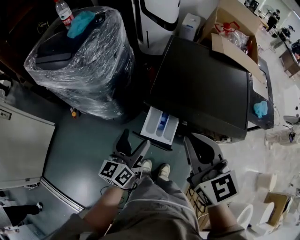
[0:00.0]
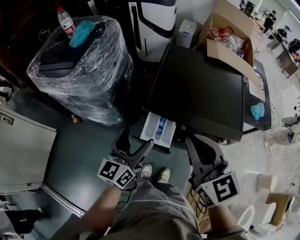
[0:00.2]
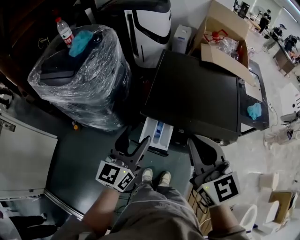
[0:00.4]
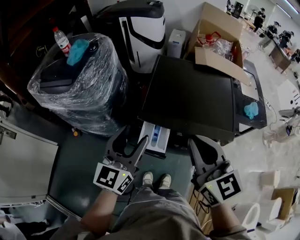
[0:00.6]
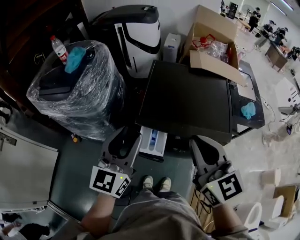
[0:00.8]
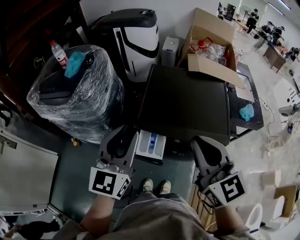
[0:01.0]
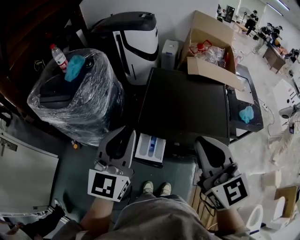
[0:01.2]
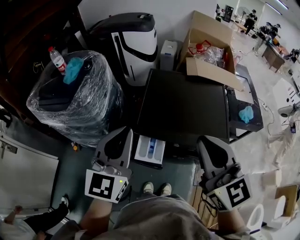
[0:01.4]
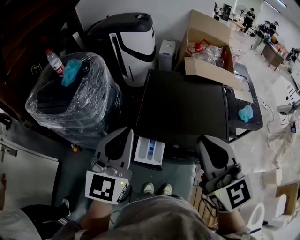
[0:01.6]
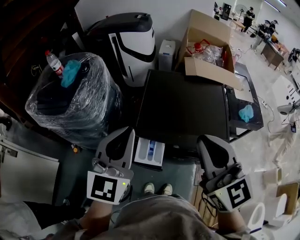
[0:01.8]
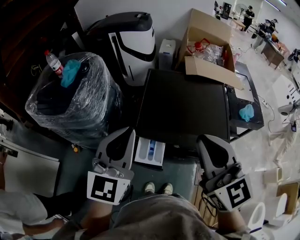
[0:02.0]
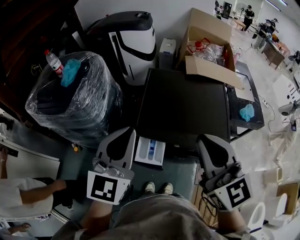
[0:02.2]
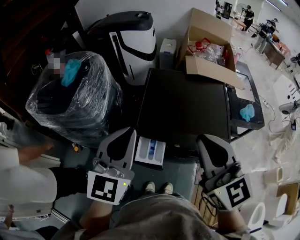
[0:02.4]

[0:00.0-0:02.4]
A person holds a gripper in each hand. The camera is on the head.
0:00.0 to 0:01.2: The right gripper shifts about 15 cm upward and to the right. Meanwhile the left gripper heads upward, covering approximately 25 cm, rotates approximately 40 degrees, and closes up.
0:01.2 to 0:02.4: The grippers stay close to where they were, moving slightly.

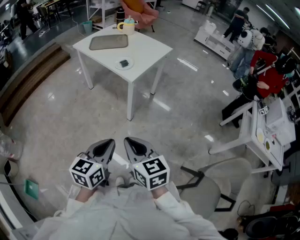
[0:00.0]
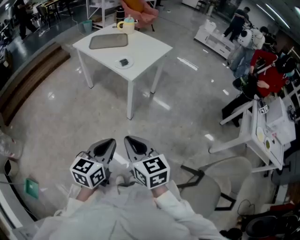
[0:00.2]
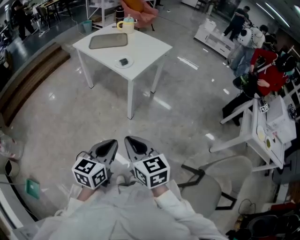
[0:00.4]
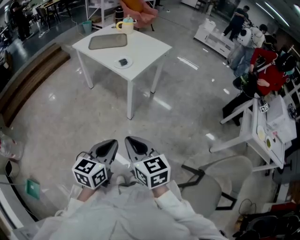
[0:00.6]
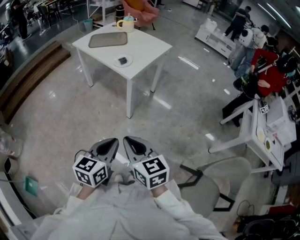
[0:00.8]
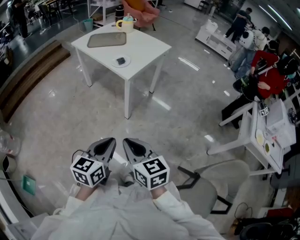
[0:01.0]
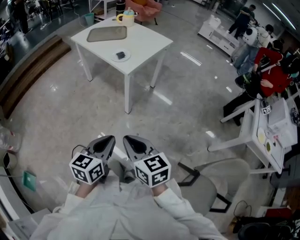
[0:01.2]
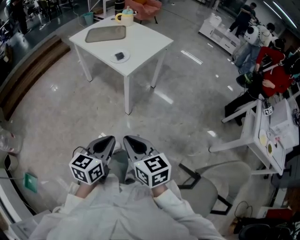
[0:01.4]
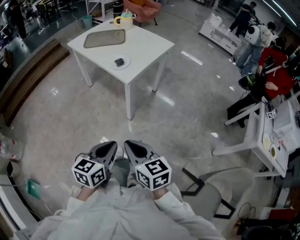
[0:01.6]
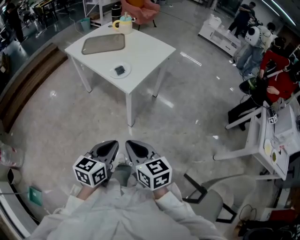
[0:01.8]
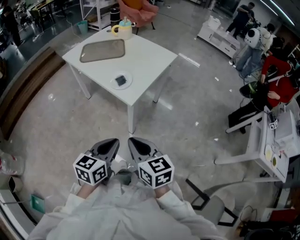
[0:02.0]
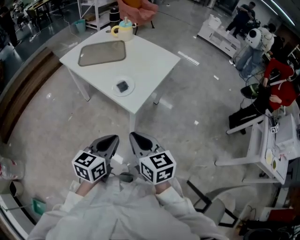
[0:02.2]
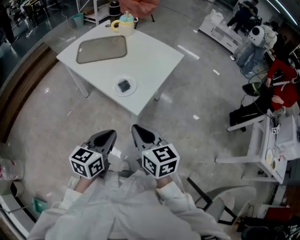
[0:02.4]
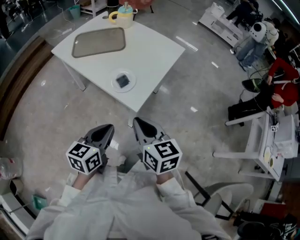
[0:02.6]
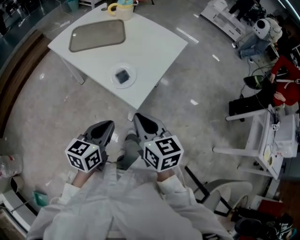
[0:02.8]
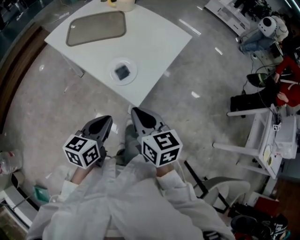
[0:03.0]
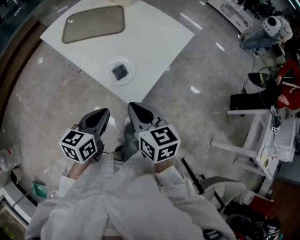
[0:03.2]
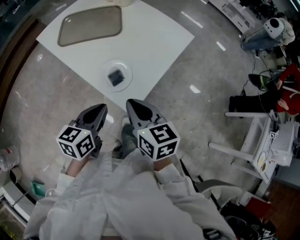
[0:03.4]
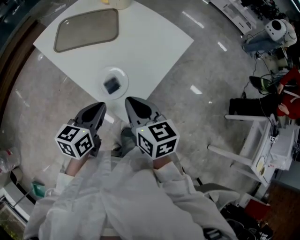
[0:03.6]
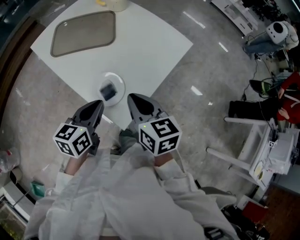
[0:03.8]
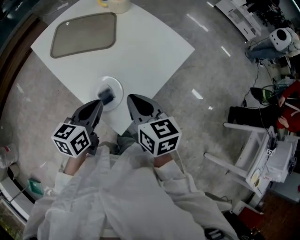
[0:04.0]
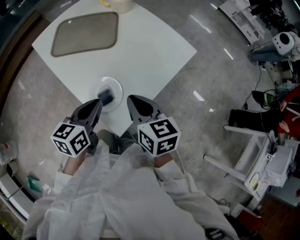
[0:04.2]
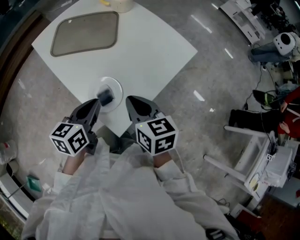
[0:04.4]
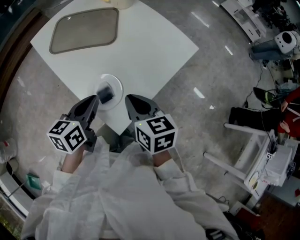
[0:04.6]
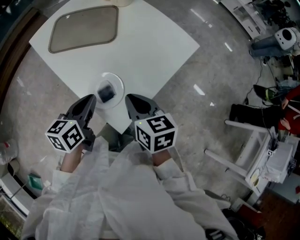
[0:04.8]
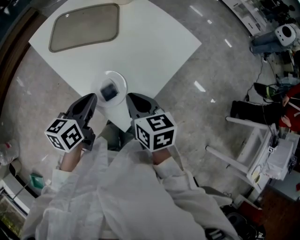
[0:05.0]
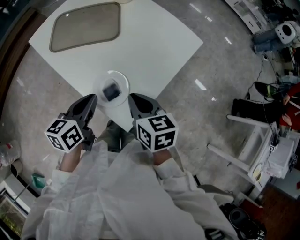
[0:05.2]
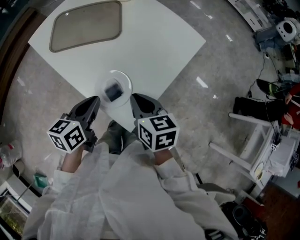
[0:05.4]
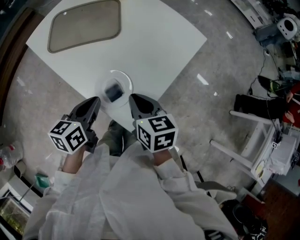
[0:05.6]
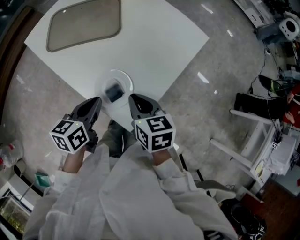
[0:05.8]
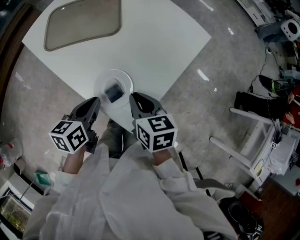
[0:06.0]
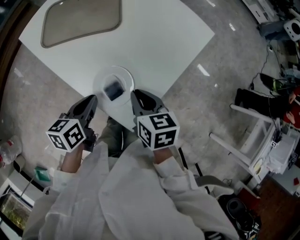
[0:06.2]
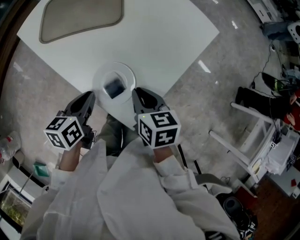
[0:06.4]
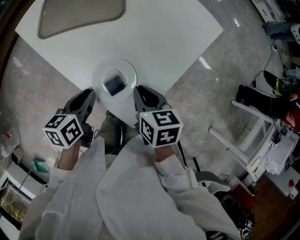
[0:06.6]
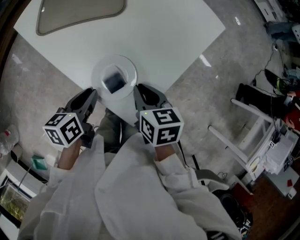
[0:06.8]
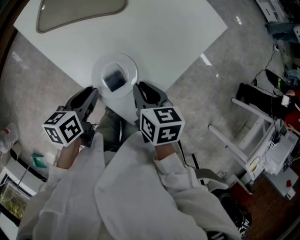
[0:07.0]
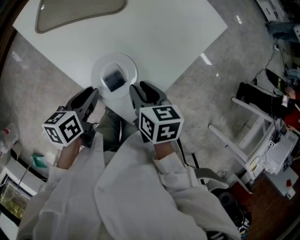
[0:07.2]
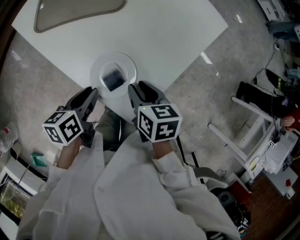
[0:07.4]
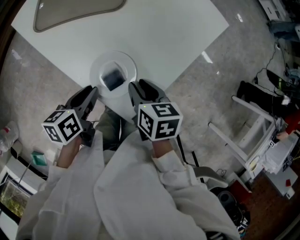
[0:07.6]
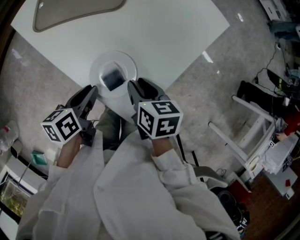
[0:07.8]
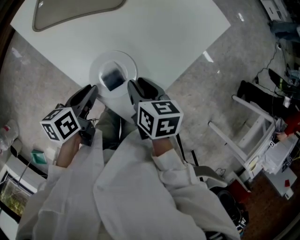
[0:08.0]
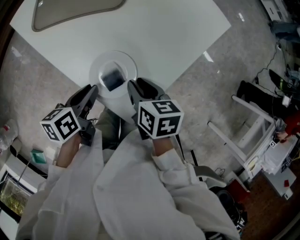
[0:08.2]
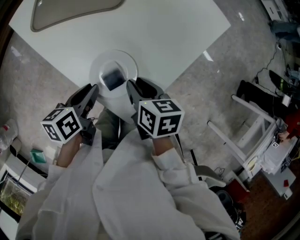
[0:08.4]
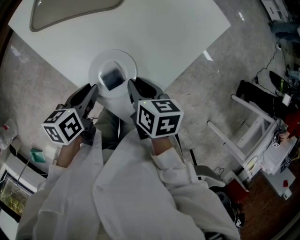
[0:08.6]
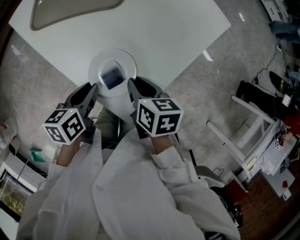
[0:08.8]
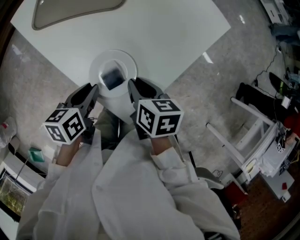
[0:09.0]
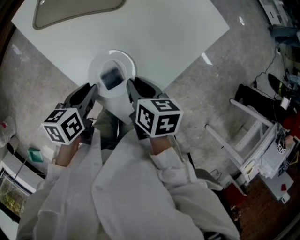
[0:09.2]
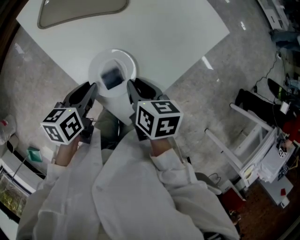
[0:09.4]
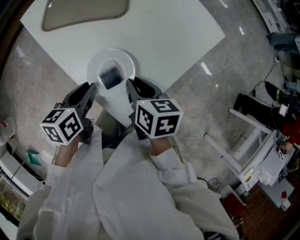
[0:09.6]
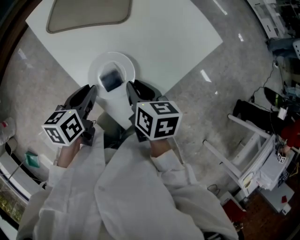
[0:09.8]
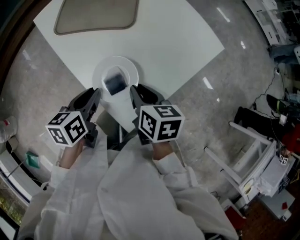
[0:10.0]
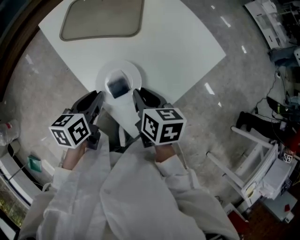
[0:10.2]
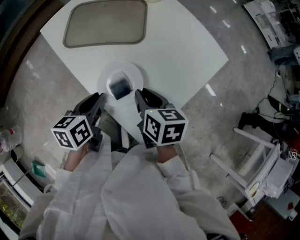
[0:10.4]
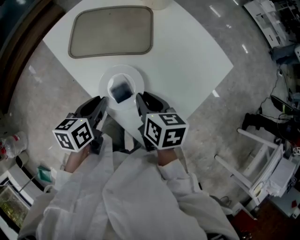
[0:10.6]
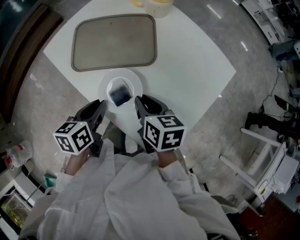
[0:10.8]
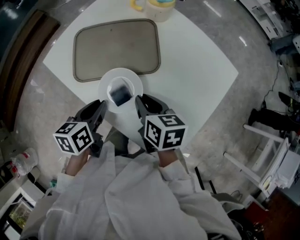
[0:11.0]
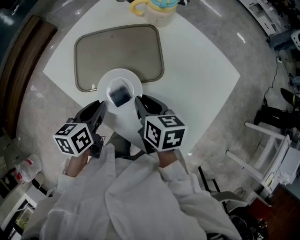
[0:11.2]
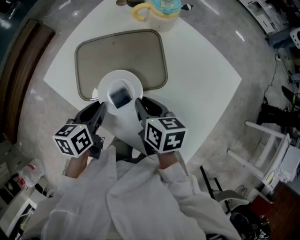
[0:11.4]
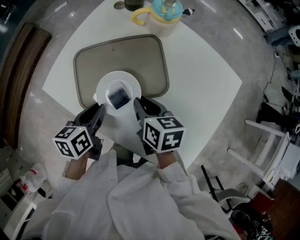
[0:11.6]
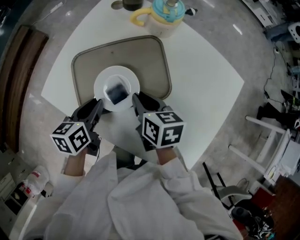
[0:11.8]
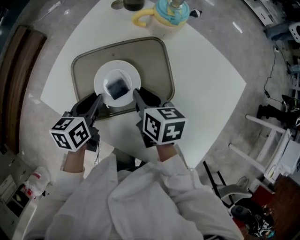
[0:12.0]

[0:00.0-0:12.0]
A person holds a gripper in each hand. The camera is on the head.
0:00.0 to 0:01.6: Both grippers move forward, approximately 5 cm.
0:01.6 to 0:03.0: Both grippers move forward, about 35 cm.
0:03.0 to 0:04.4: Both grippers travel together forward, about 20 cm.
0:04.4 to 0:06.0: The two grippers go some 5 cm downward.
0:06.0 to 0:07.6: The left gripper ends up some 5 cm from where it was, while the right gripper shifts approximately 5 cm downward, and opens.
0:07.6 to 0:09.0: The grippers stay close to where they were, moving slightly.
0:09.0 to 0:10.4: The right gripper goes some 10 cm upward and forward, while the left gripper shifts about 5 cm upward.
0:10.4 to 0:12.0: Both grippers travel together forward and to the left, roughly 30 cm.

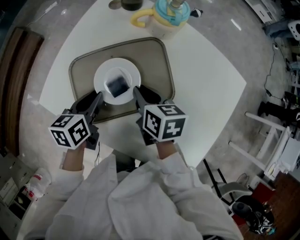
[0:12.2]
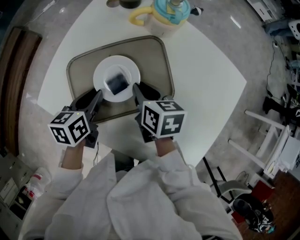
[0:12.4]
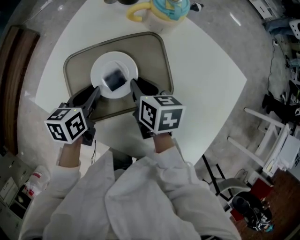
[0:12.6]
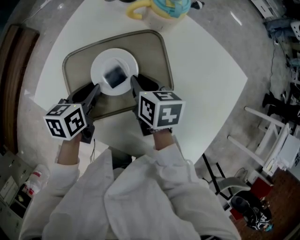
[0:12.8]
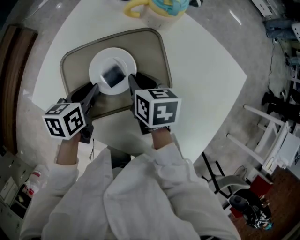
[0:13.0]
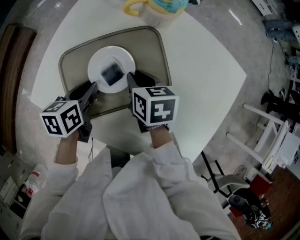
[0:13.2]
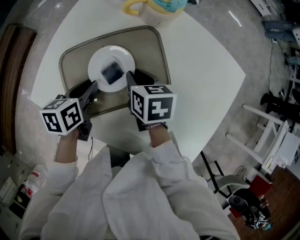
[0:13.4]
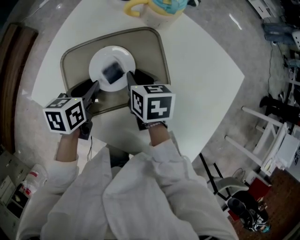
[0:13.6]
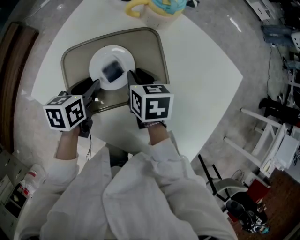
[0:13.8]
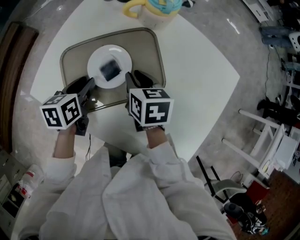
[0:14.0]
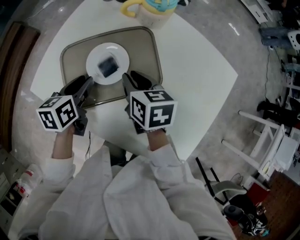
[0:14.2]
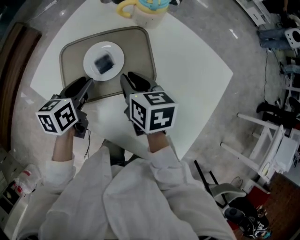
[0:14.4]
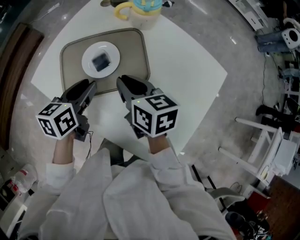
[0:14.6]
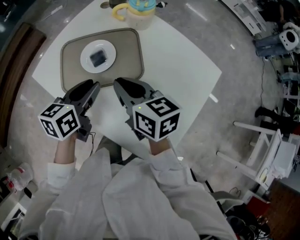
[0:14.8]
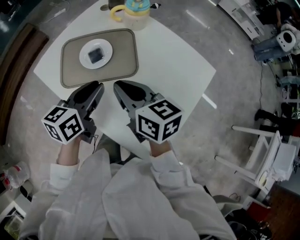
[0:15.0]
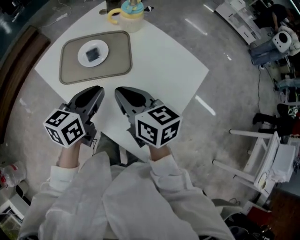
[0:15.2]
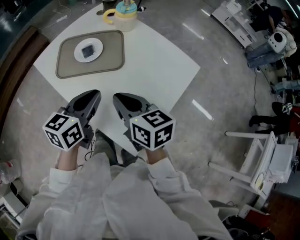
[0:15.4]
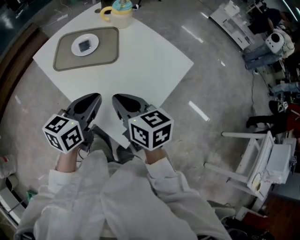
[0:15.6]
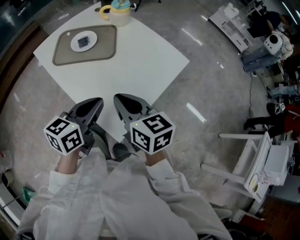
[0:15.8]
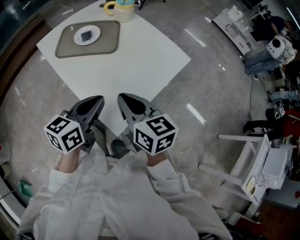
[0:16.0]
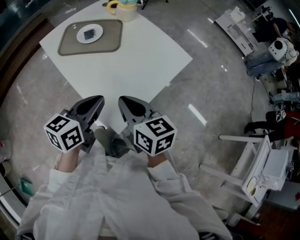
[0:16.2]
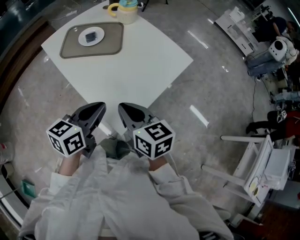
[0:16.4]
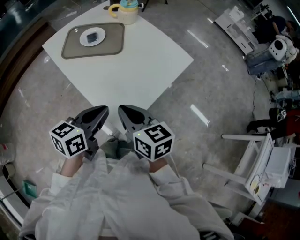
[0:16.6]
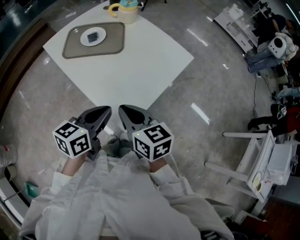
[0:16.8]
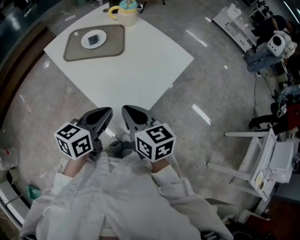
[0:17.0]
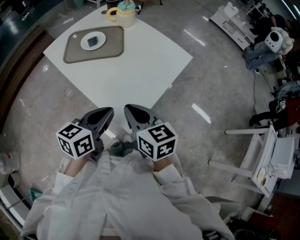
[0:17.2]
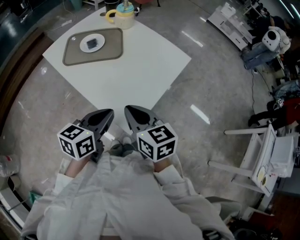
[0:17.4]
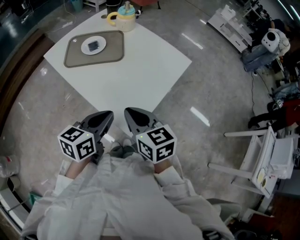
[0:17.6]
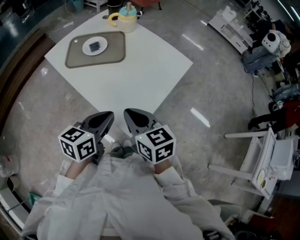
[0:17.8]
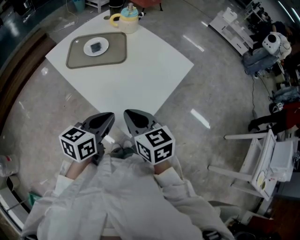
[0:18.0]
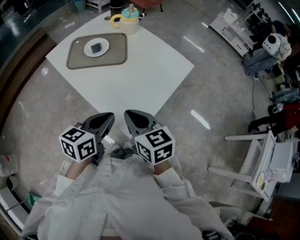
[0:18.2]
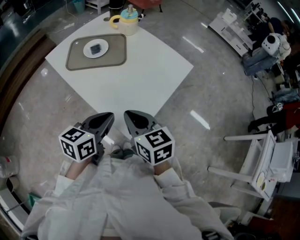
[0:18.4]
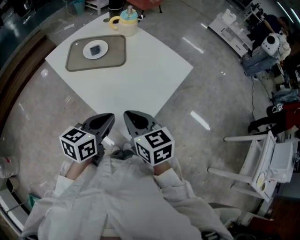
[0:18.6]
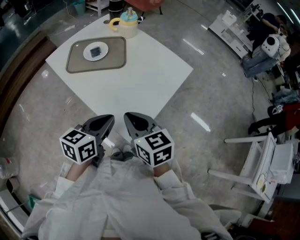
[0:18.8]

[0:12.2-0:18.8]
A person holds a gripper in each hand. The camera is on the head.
0:12.2 to 0:13.8: The grippers stay close to where they were, moving slightly.
0:13.8 to 0:15.4: The left gripper is displaced backward, to the right and upward by some 35 cm, and rotates approximately 30 degrees, while the right gripper goes some 35 cm backward, upward and to the right, and rotates about 30 degrees.
0:15.4 to 0:17.2: Both grippers travel together backward, approximately 15 cm.
0:17.2 to 0:18.8: The grippers make only small movements.

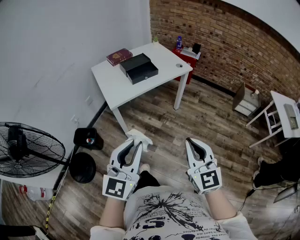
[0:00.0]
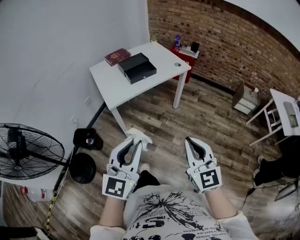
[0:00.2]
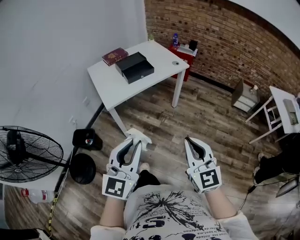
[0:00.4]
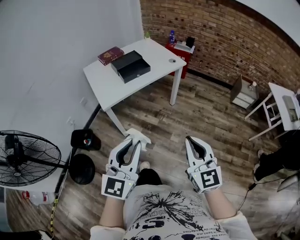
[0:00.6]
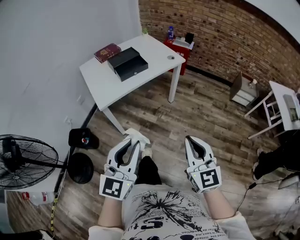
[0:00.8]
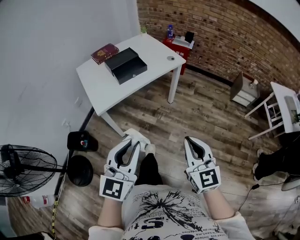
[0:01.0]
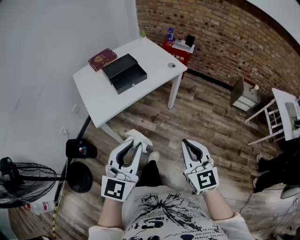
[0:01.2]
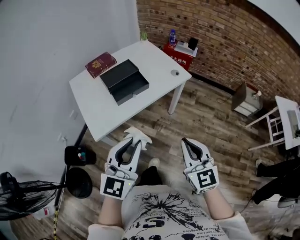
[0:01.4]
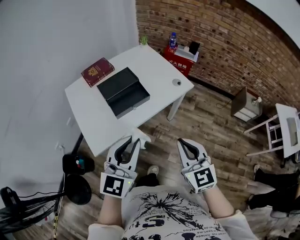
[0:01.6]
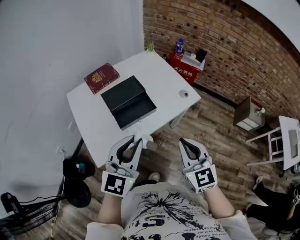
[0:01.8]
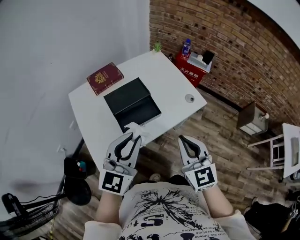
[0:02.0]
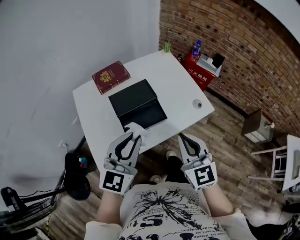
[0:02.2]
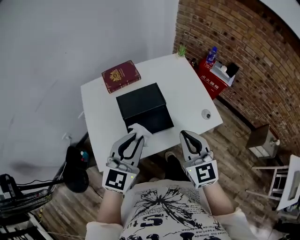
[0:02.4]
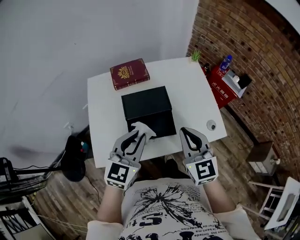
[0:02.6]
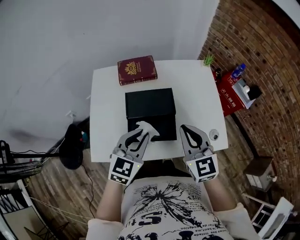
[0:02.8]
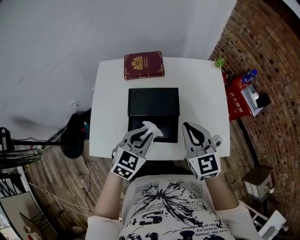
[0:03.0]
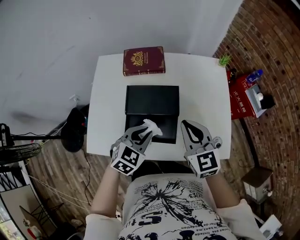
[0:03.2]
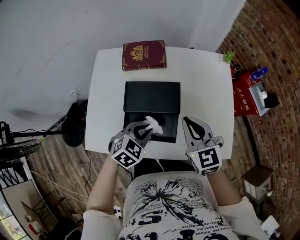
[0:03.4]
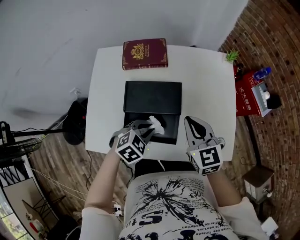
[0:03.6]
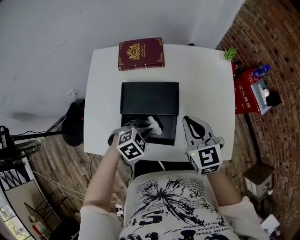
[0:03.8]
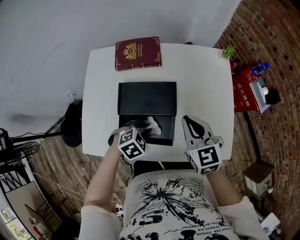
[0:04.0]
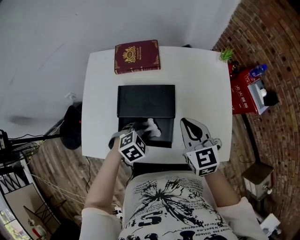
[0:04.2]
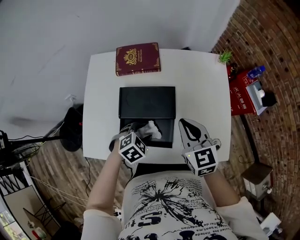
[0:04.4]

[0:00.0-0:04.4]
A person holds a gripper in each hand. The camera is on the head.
0:00.0 to 0:01.4: Both grippers move forward, roughly 30 cm.
0:01.4 to 0:03.0: The pair of grippers is taken roughly 50 cm. The left gripper tips its fingers downward by some 30 degrees. The right gripper turns by about 40 degrees.
0:03.0 to 0:04.4: The left gripper is displaced downward by roughly 15 cm, changes its angle by about 30 degrees, and opens up; the right gripper goes roughly 10 cm downward and forward.
